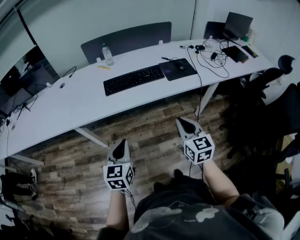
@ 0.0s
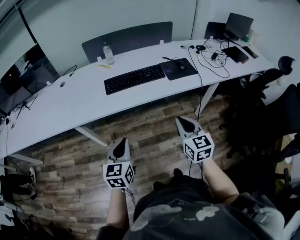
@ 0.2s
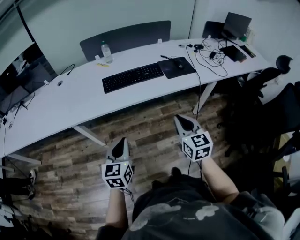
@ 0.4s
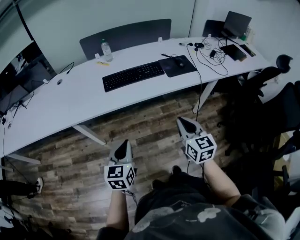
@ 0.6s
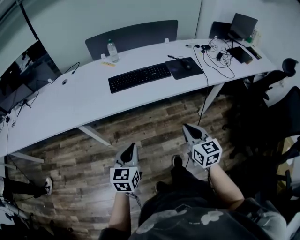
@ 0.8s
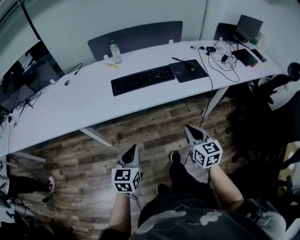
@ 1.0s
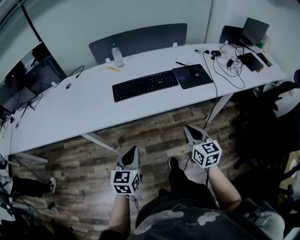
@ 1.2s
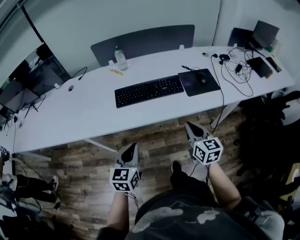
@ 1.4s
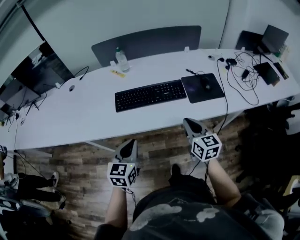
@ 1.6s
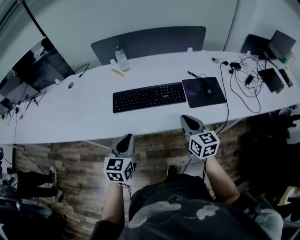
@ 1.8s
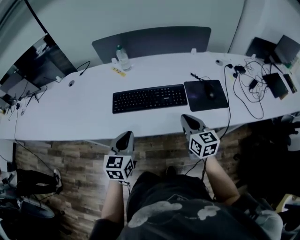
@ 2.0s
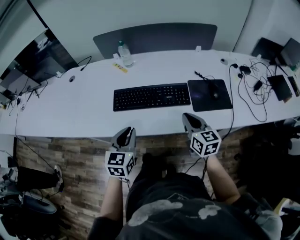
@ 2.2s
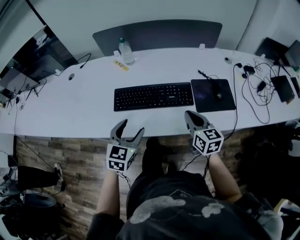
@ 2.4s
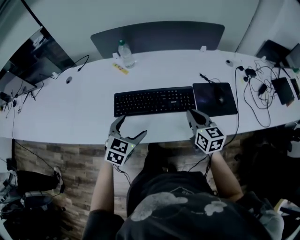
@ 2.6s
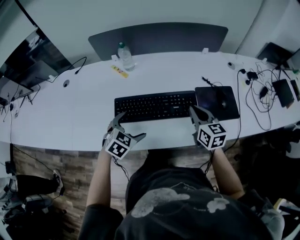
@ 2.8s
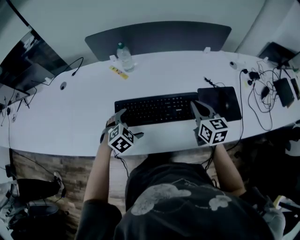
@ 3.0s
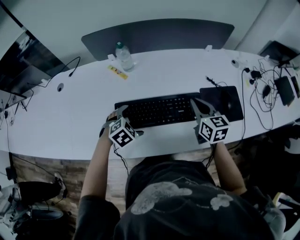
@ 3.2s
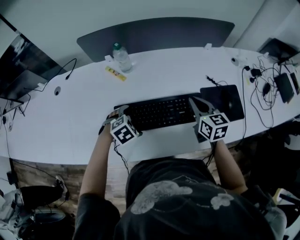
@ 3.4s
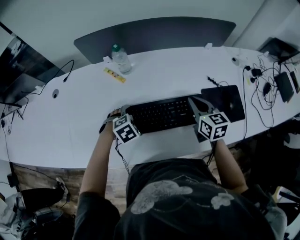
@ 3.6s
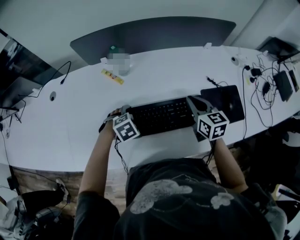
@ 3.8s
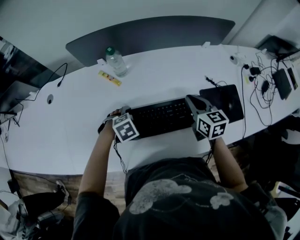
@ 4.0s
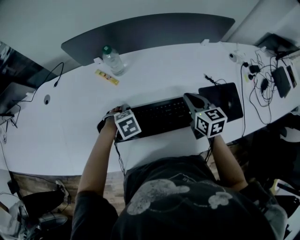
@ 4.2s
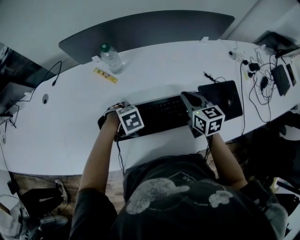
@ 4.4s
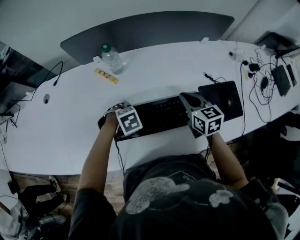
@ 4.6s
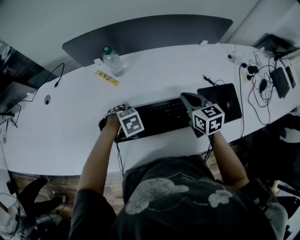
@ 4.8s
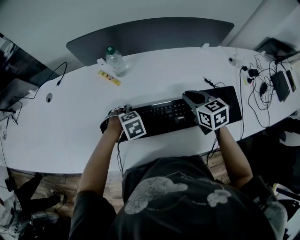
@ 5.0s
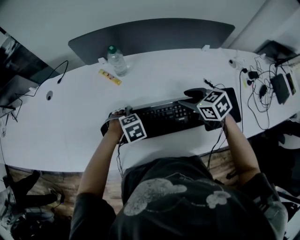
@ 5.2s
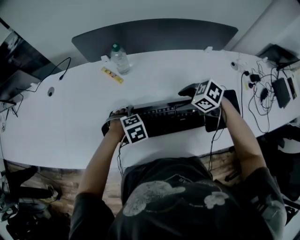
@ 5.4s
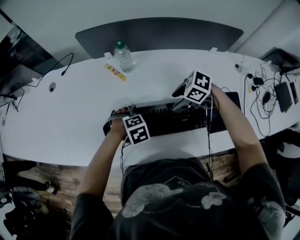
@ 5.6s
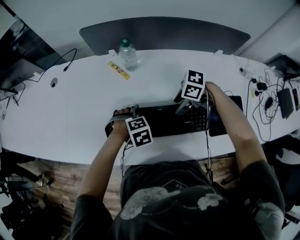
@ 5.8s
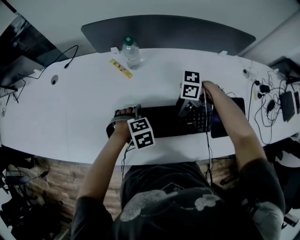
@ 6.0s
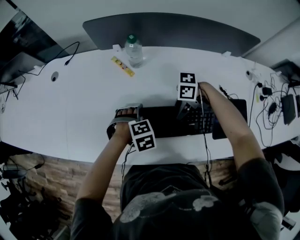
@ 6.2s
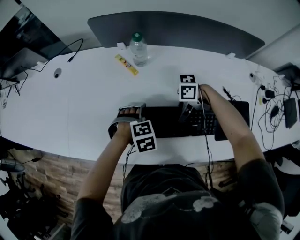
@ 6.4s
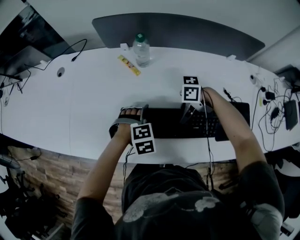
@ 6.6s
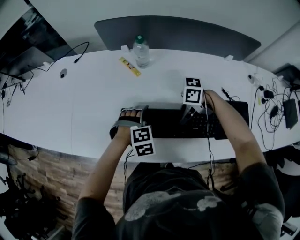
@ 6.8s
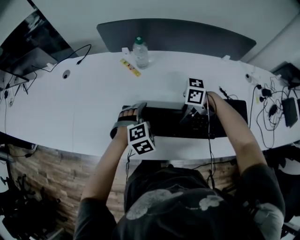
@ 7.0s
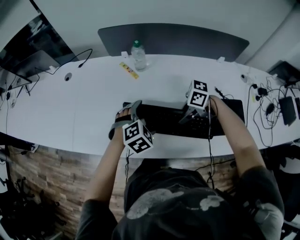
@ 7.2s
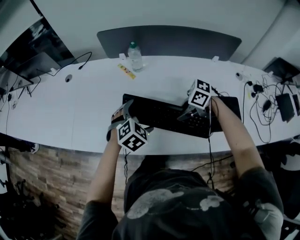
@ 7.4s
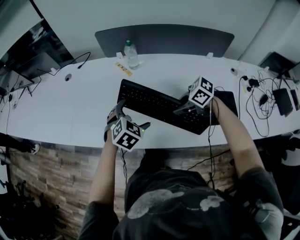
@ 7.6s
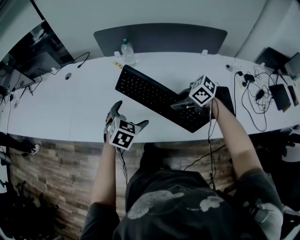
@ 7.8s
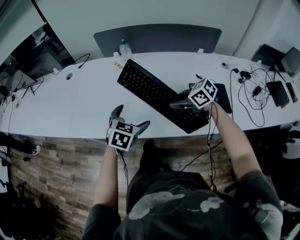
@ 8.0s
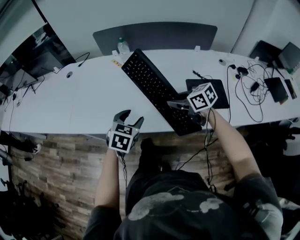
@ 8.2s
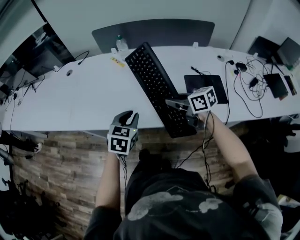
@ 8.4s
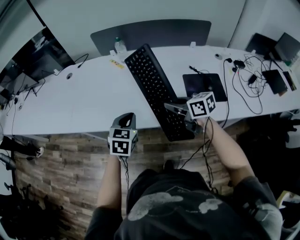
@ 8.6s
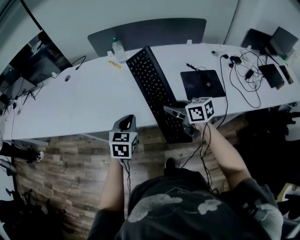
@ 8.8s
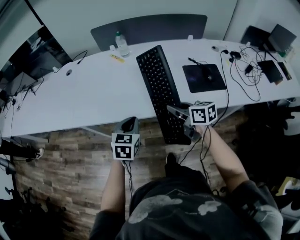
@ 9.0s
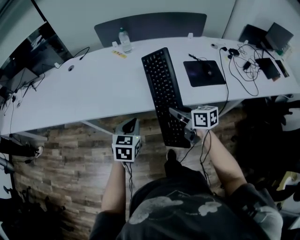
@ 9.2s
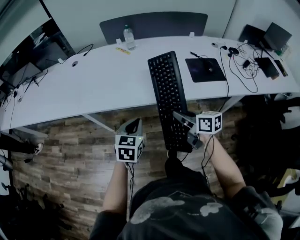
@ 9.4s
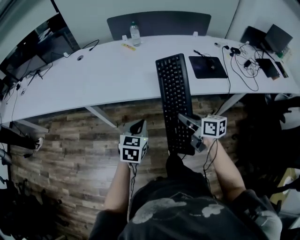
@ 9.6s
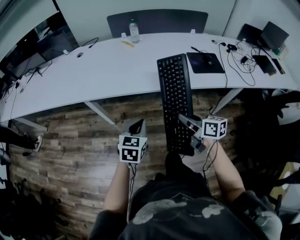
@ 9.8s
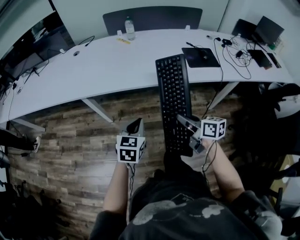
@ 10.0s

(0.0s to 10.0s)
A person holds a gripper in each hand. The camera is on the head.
0.0s - 1.4s: The left gripper goes some 10 cm forward, while the right gripper is displaced forward and downward by some 15 cm.
1.4s - 2.8s: Both grippers move forward, roughly 25 cm. The left gripper rotates roughly 40 degrees, and opens.
2.8s - 4.2s: The right gripper changes place by about 15 cm. The left gripper moves roughly 15 cm, and tips its fingers downward by roughly 30 degrees.
4.2s - 5.8s: The right gripper shifts by roughly 10 cm, turns by approximately 90 degrees, and opens.
5.8s - 7.2s: The left gripper shifts some 10 cm upward, and swivels roughly 30 degrees, while the right gripper moves roughly 10 cm, and closes its fingers.
7.2s - 8.6s: The right gripper moves some 15 cm, and swivels about 70 degrees, while the left gripper shifts by roughly 20 cm, rotates roughly 40 degrees, and closes.
8.6s - 10.0s: The grippers both shift backward and to the left by approximately 30 cm. The right gripper turns by about 20 degrees.

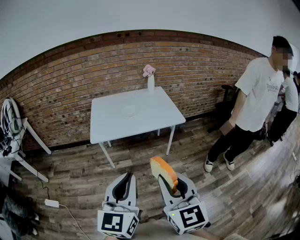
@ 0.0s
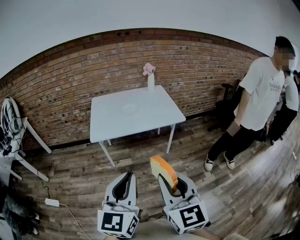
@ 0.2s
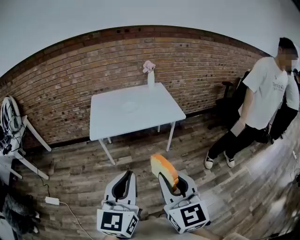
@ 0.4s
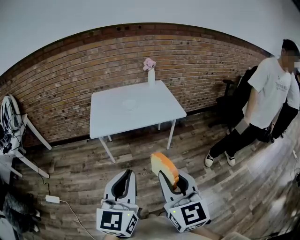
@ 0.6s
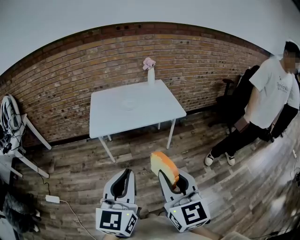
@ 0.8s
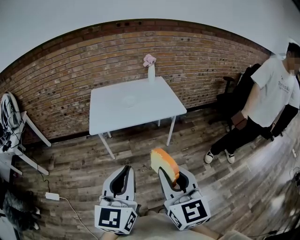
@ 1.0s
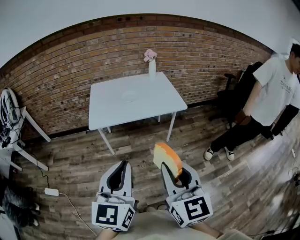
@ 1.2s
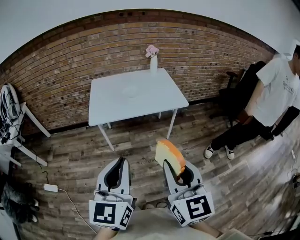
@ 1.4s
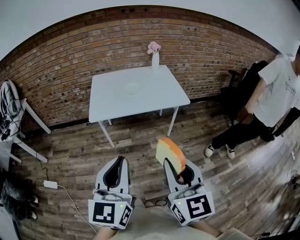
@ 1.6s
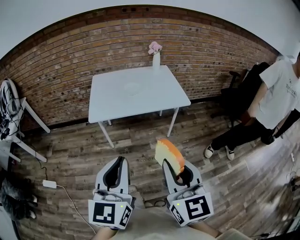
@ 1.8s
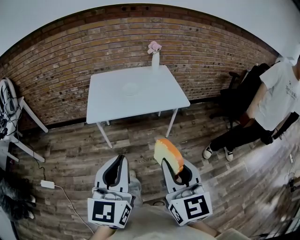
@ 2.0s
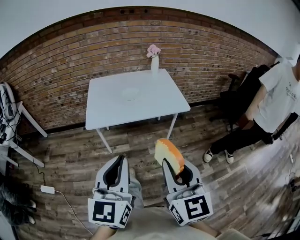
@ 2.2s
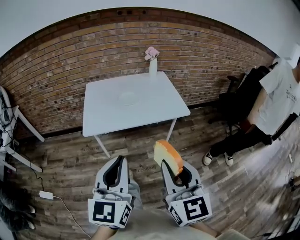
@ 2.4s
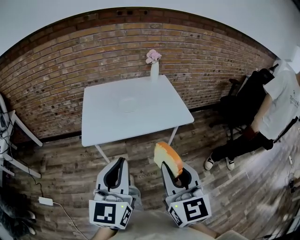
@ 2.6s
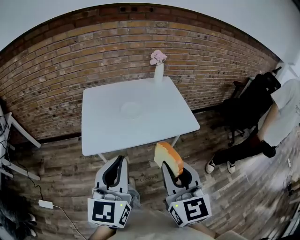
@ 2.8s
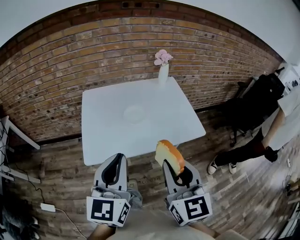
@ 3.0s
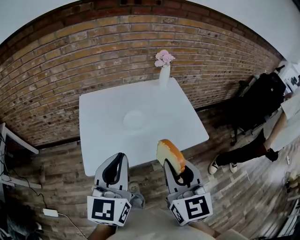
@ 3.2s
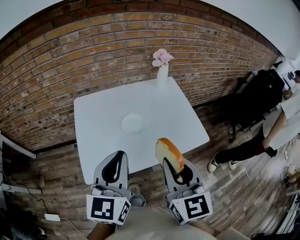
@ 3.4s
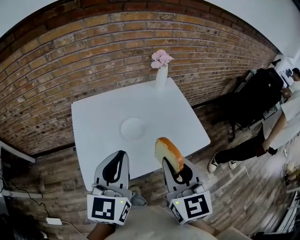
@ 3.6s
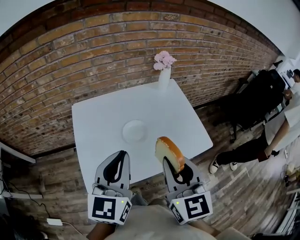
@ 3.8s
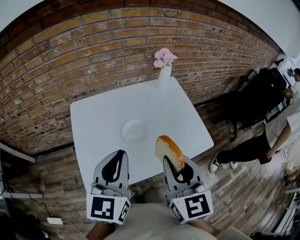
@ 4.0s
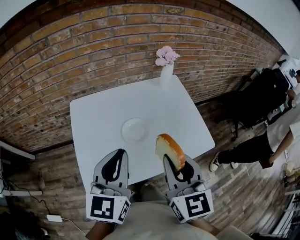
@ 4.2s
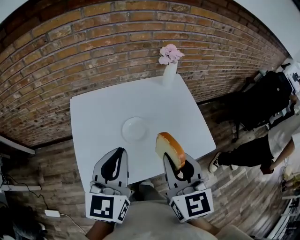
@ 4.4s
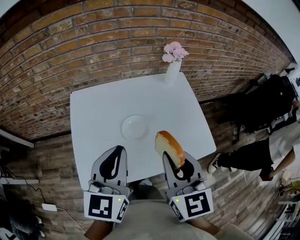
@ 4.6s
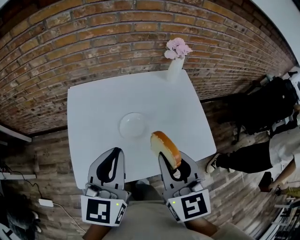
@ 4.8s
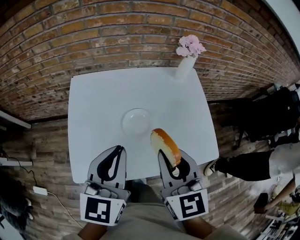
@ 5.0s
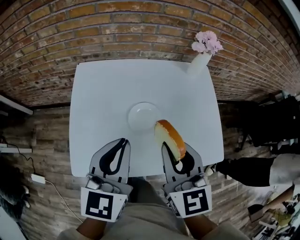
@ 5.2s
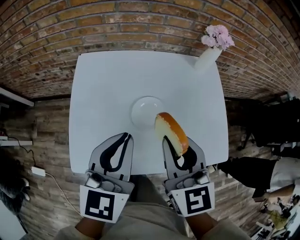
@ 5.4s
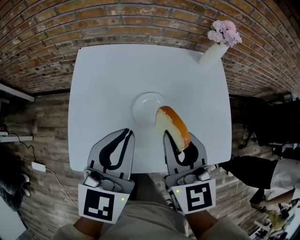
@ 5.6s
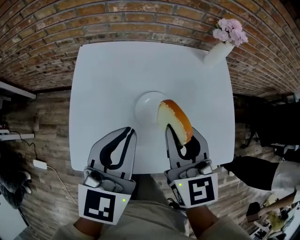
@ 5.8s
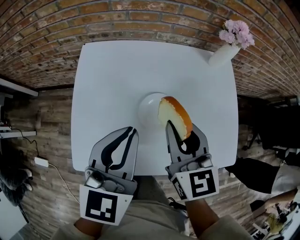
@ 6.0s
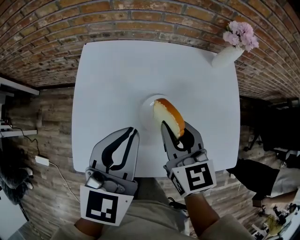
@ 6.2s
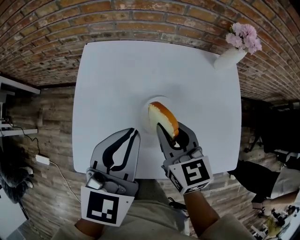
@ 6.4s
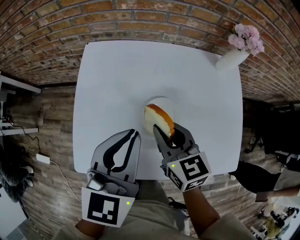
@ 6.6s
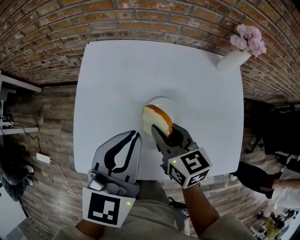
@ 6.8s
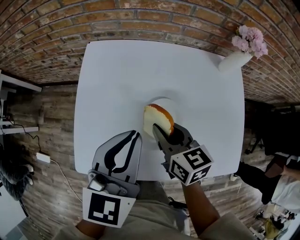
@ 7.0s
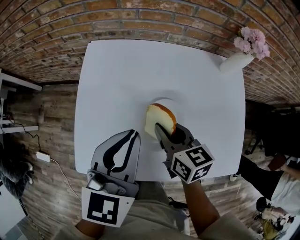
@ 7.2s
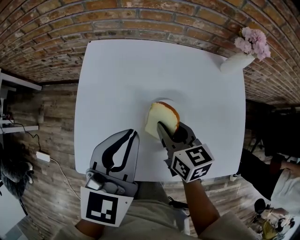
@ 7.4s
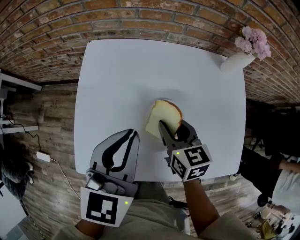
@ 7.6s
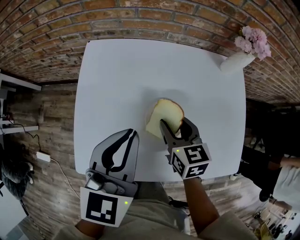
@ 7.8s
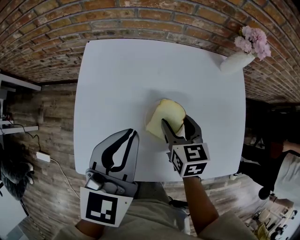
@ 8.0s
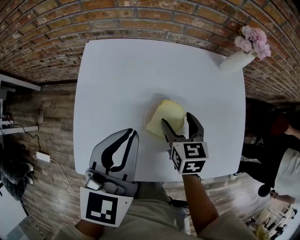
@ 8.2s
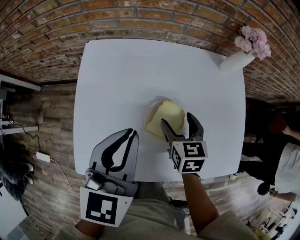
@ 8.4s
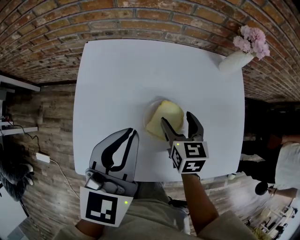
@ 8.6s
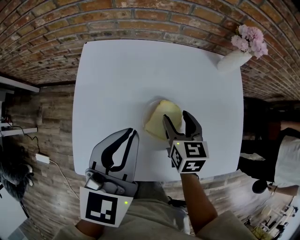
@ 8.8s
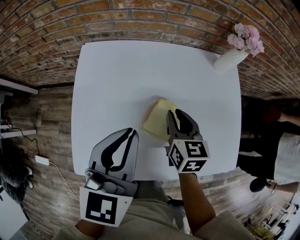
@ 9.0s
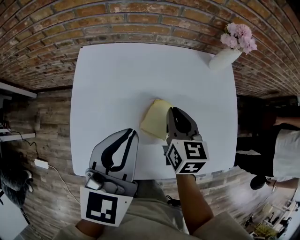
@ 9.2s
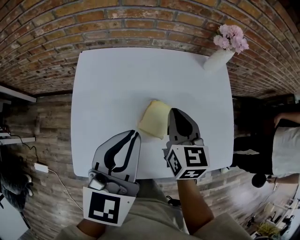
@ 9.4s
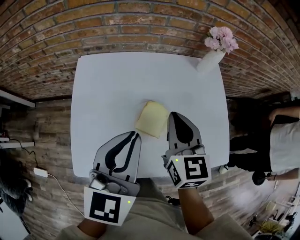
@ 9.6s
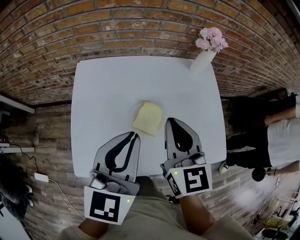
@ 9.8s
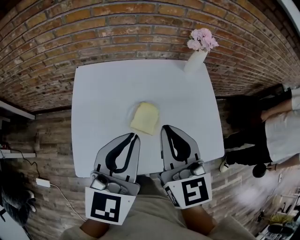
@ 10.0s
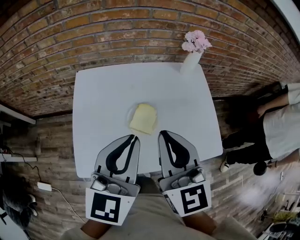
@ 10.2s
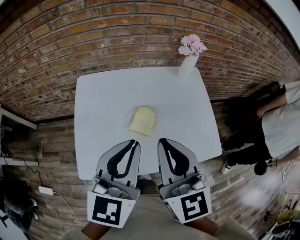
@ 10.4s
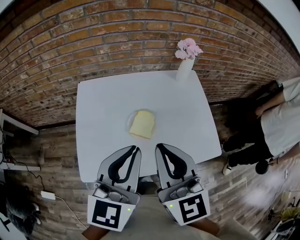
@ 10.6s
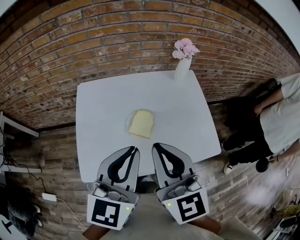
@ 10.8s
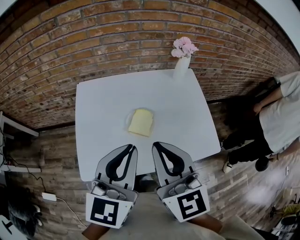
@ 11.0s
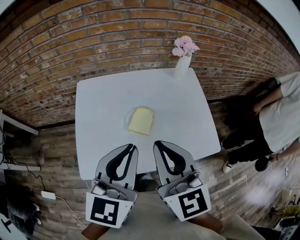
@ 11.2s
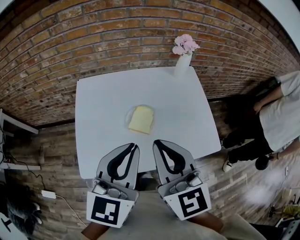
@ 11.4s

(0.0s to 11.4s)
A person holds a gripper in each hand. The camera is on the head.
0.0s - 1.4s: The grippers move only a little.
1.4s - 2.8s: Both grippers move forward, about 25 cm.
2.8s - 4.2s: The two grippers go some 30 cm forward.
4.2s - 5.6s: The left gripper is displaced downward and forward by some 10 cm. The right gripper goes about 15 cm forward and downward.
5.6s - 7.2s: The left gripper shifts by approximately 5 cm. The right gripper is displaced downward and forward by approximately 15 cm, and turns by approximately 30 degrees.
7.2s - 8.6s: The right gripper shifts some 5 cm to the right, rotates about 20 degrees, and opens up.
8.6s - 10.0s: The right gripper heads upward and backward, covering some 25 cm, swivels approximately 30 degrees, and closes its fingers. Meanwhile the left gripper heads upward, backward and to the right, covering about 10 cm.
10.0s - 11.4s: Both grippers travel together backward, roughly 5 cm.

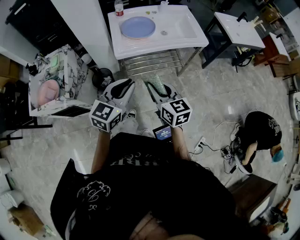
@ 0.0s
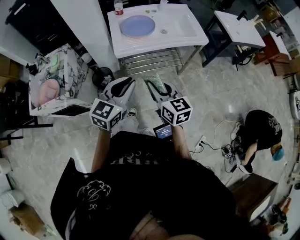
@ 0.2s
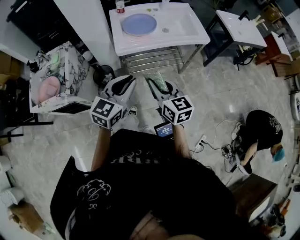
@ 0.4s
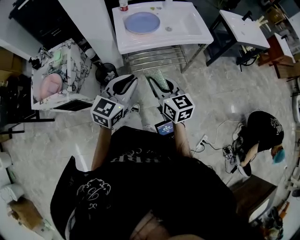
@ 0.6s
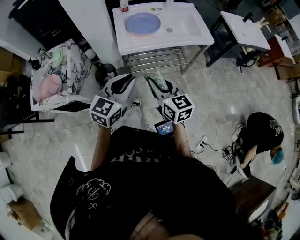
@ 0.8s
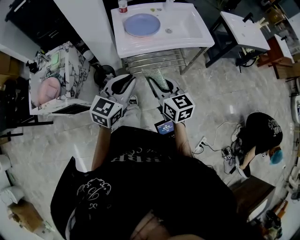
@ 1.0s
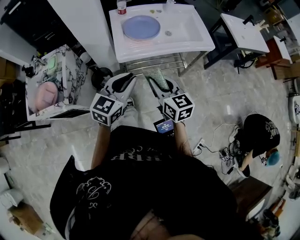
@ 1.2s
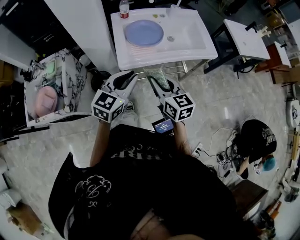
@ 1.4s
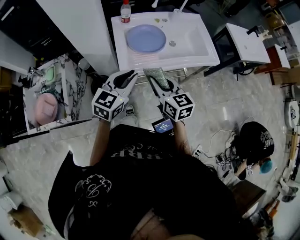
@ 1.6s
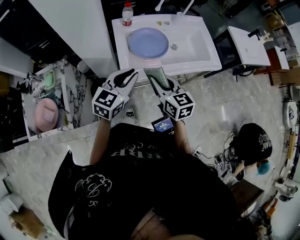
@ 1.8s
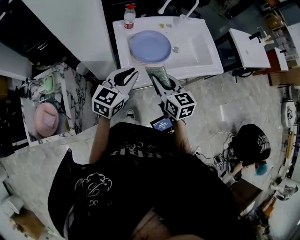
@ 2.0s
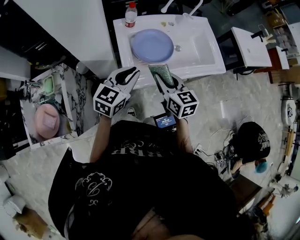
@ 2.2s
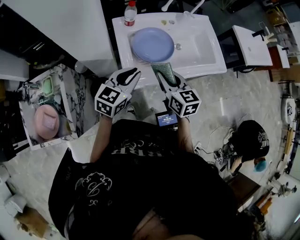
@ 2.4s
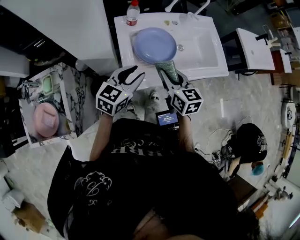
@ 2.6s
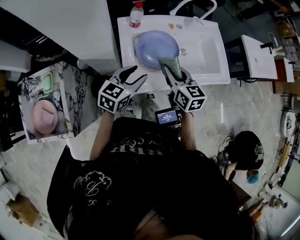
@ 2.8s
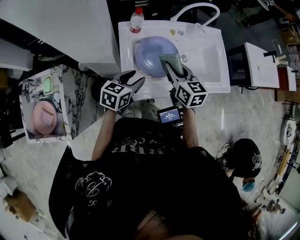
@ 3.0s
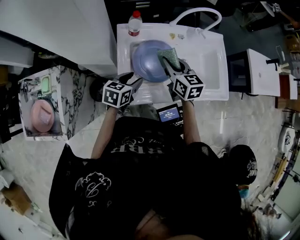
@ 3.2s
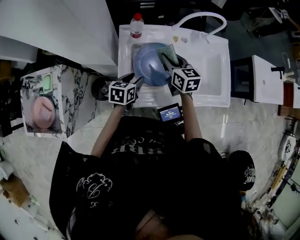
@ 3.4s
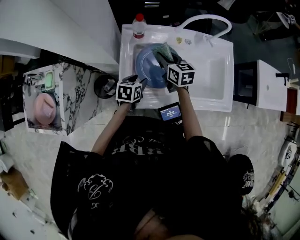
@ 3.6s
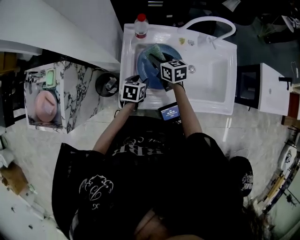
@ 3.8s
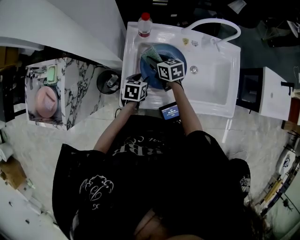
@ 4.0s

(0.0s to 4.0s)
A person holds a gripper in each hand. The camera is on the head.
0.0s - 1.4s: Both grippers travel together forward, about 15 cm.
1.4s - 2.6s: Both grippers move forward, approximately 20 cm.
2.6s - 4.0s: The right gripper changes place by about 25 cm, and rotates approximately 30 degrees, while the left gripper is displaced downward by about 20 cm, and points its fingers approximately 30 degrees further downward.
